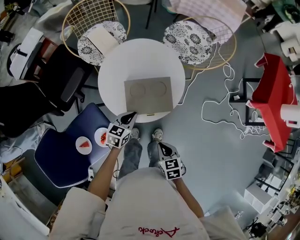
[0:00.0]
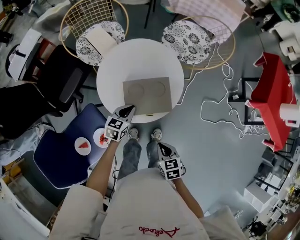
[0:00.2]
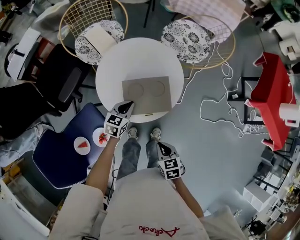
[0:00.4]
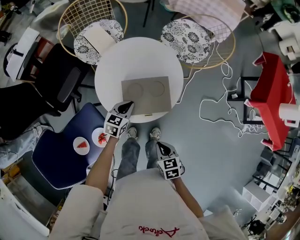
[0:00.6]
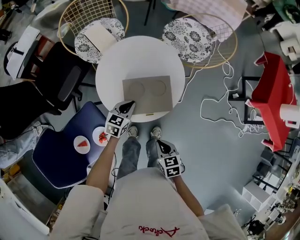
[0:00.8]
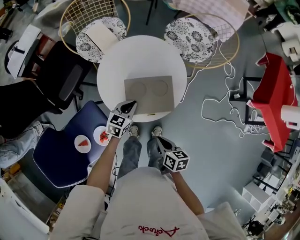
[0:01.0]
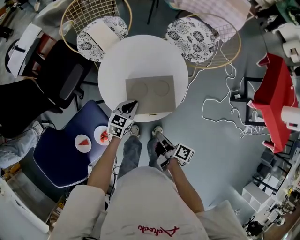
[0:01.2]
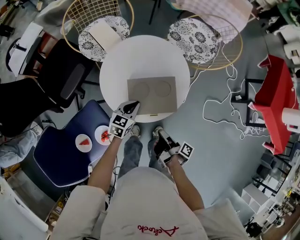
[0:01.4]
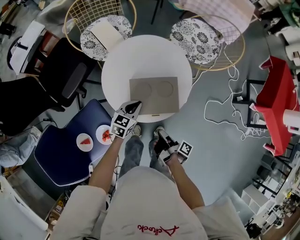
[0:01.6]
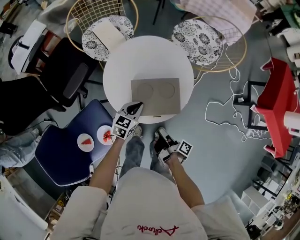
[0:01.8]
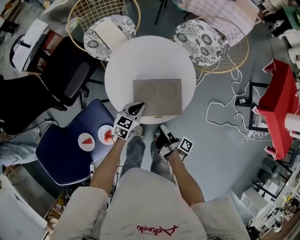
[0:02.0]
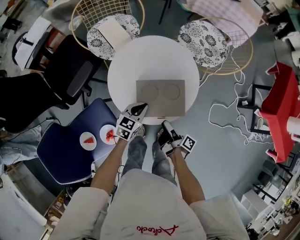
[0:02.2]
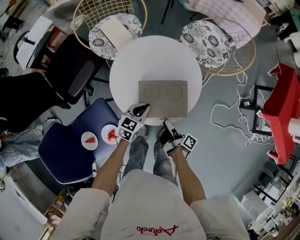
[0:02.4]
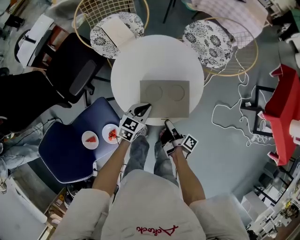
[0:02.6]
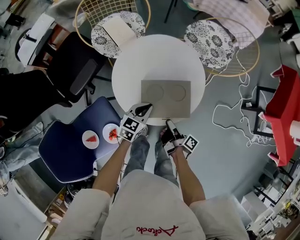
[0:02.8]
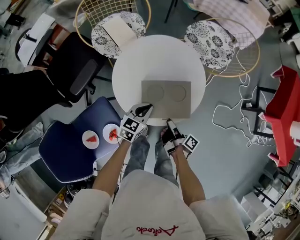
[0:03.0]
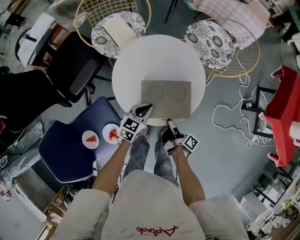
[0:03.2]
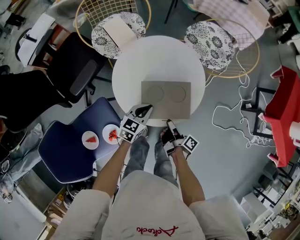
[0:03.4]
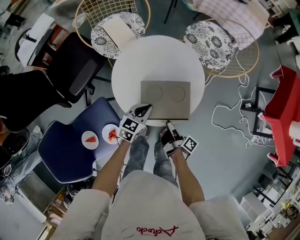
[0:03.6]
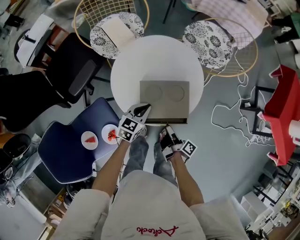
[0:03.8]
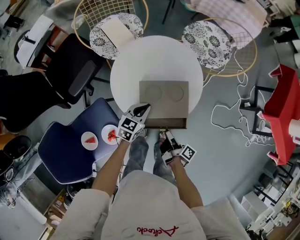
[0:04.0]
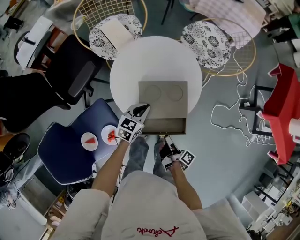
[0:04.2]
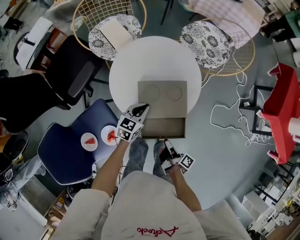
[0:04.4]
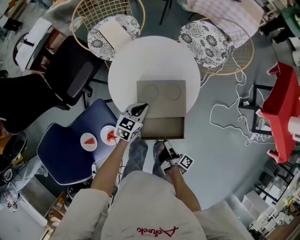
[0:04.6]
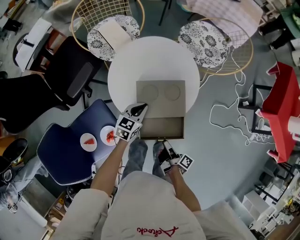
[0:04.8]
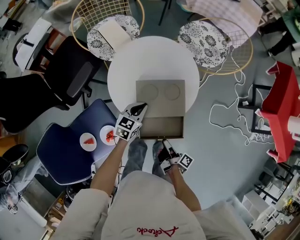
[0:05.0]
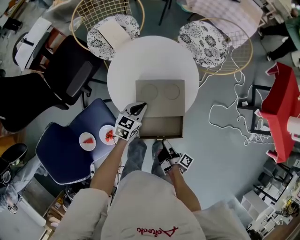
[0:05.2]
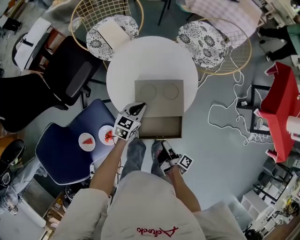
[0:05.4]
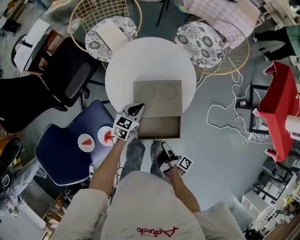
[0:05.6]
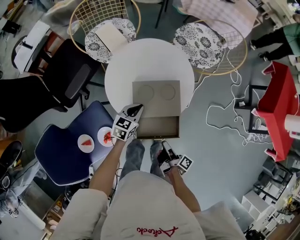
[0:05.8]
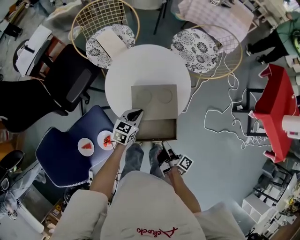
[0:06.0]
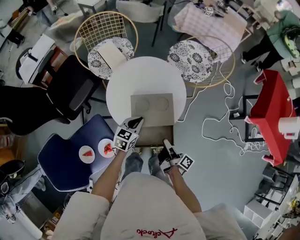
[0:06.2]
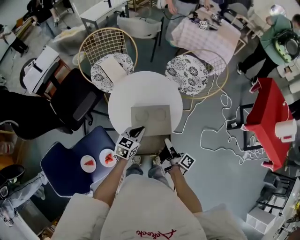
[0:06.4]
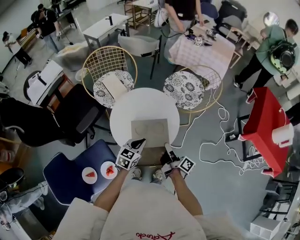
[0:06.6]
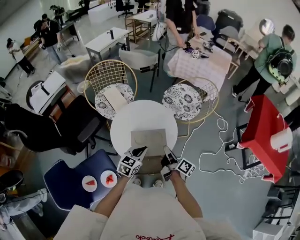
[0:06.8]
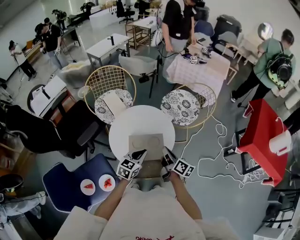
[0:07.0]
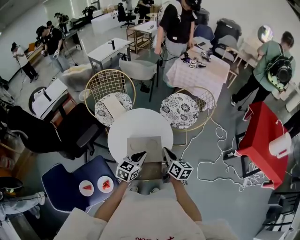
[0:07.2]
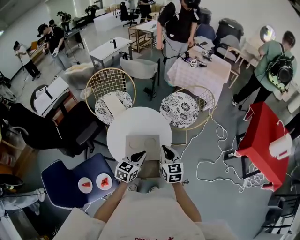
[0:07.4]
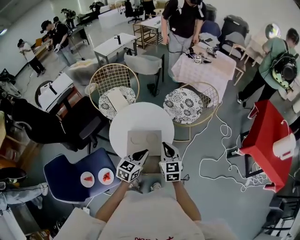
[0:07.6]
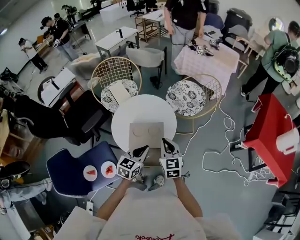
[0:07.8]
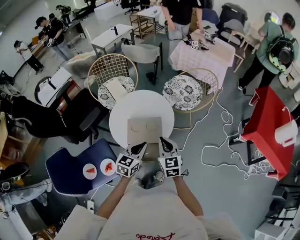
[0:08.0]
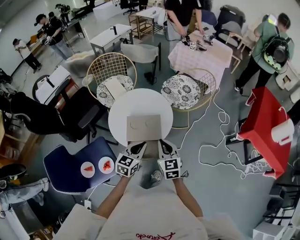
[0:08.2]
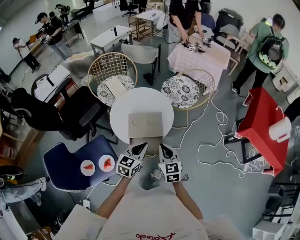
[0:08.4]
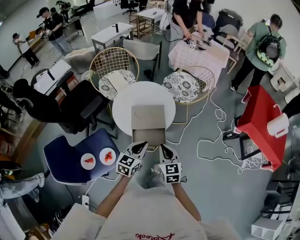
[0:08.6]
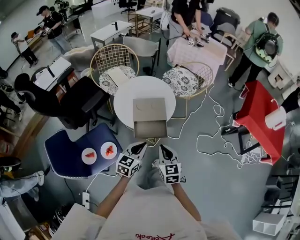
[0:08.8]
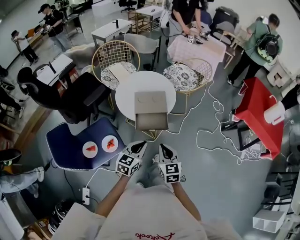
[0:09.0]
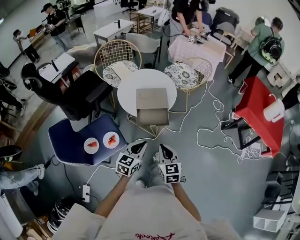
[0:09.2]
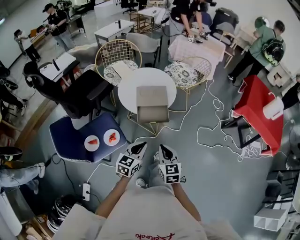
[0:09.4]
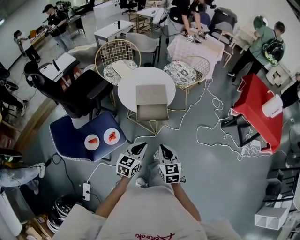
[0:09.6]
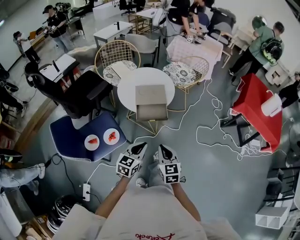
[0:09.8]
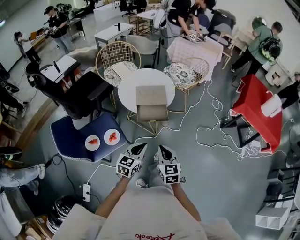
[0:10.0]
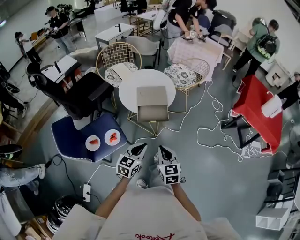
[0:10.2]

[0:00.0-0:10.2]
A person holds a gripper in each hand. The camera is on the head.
0:00.0 to 0:01.4: The grippers both shift forward by roughly 5 cm. The right gripper rolls clockwise, seen from behind, by about 90 degrees.
0:01.4 to 0:03.0: The right gripper shifts about 5 cm forward, and opens, then closes again.
0:03.0 to 0:04.4: The right gripper heads backward, covering about 10 cm.
0:04.4 to 0:05.8: The grippers move only a little.
0:05.8 to 0:07.2: The right gripper is displaced upward and forward by roughly 30 cm, and rolls counterclockwise, seen from behind, by some 60 degrees. Meanwhile the left gripper travels upward and to the right by some 20 cm.
0:07.2 to 0:08.8: Both grippers move backward, roughly 25 cm. The right gripper rotates approximately 40 degrees.
0:08.8 to 0:10.2: Both grippers move backward, approximately 15 cm.

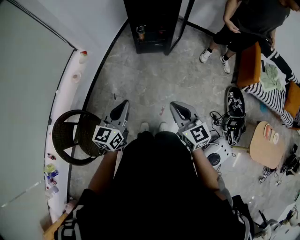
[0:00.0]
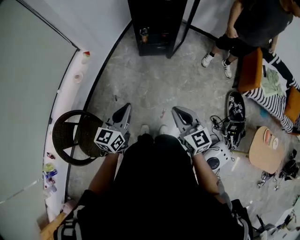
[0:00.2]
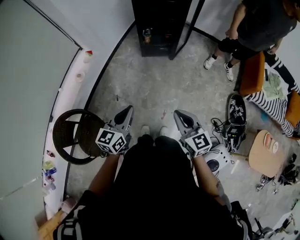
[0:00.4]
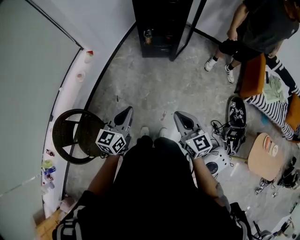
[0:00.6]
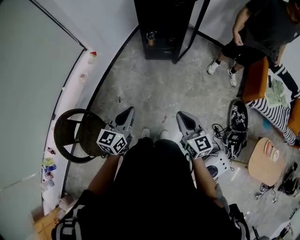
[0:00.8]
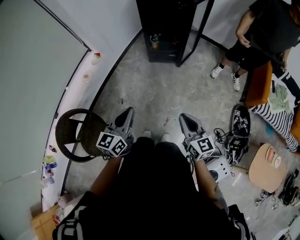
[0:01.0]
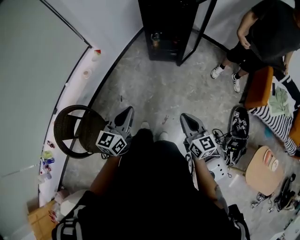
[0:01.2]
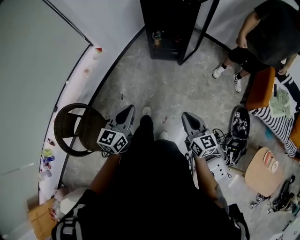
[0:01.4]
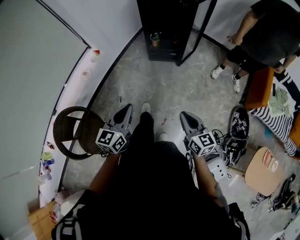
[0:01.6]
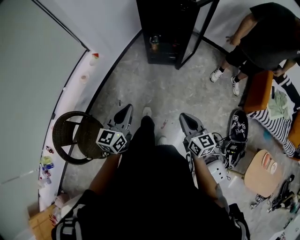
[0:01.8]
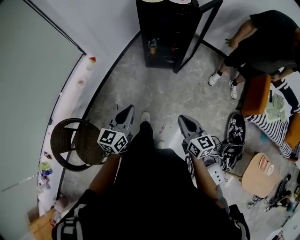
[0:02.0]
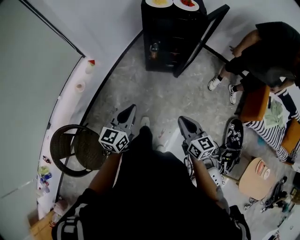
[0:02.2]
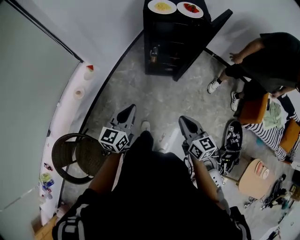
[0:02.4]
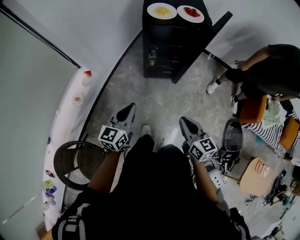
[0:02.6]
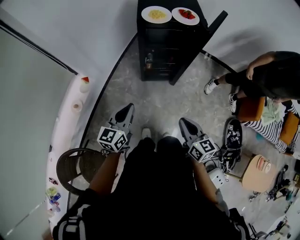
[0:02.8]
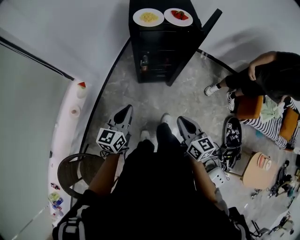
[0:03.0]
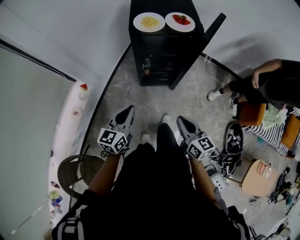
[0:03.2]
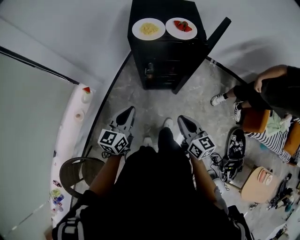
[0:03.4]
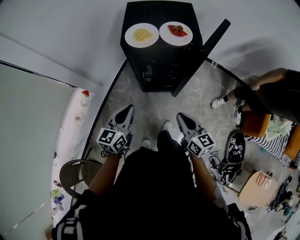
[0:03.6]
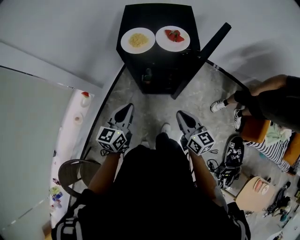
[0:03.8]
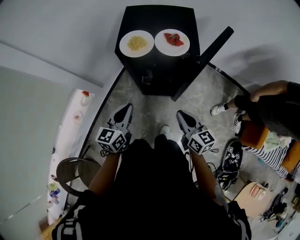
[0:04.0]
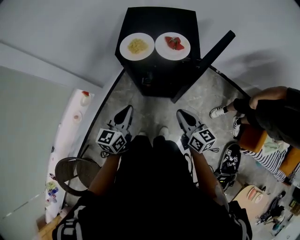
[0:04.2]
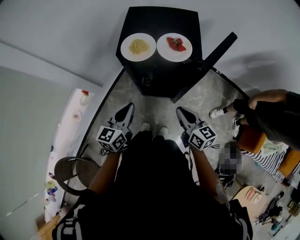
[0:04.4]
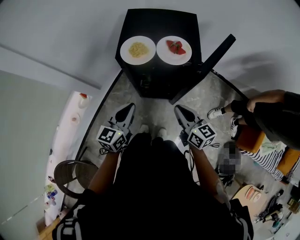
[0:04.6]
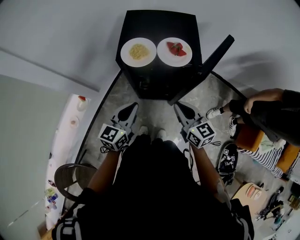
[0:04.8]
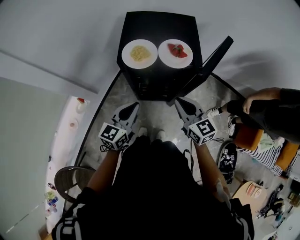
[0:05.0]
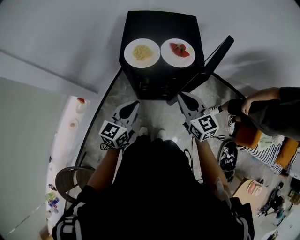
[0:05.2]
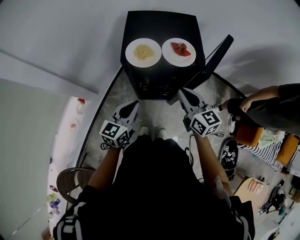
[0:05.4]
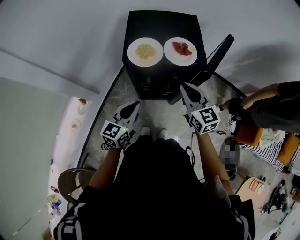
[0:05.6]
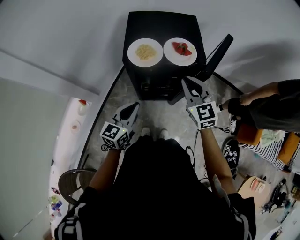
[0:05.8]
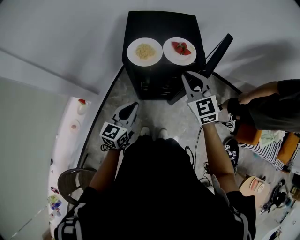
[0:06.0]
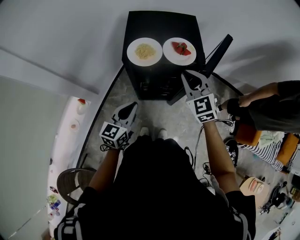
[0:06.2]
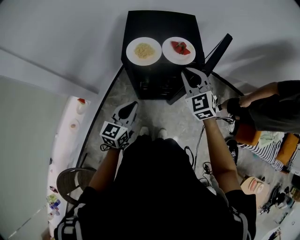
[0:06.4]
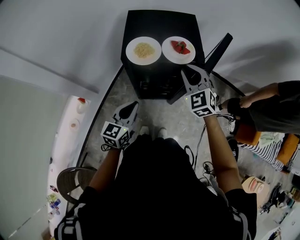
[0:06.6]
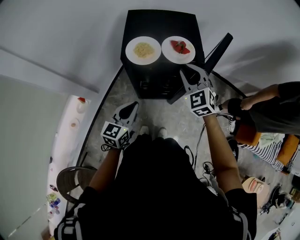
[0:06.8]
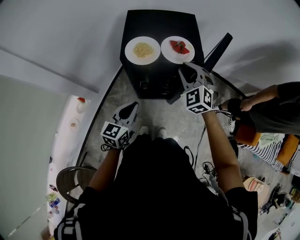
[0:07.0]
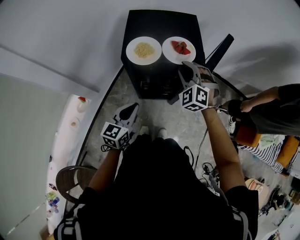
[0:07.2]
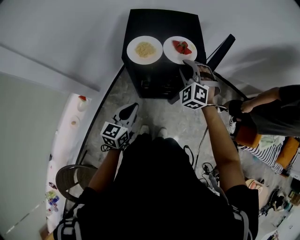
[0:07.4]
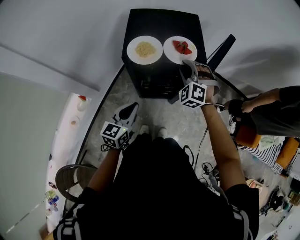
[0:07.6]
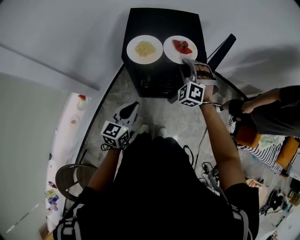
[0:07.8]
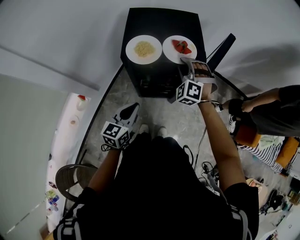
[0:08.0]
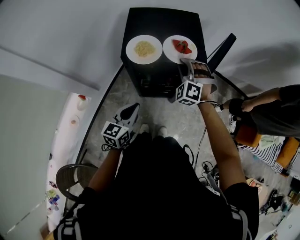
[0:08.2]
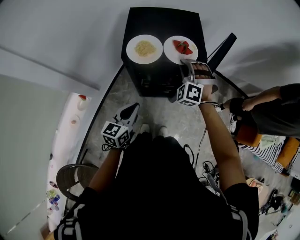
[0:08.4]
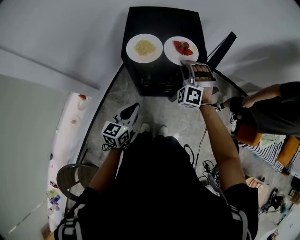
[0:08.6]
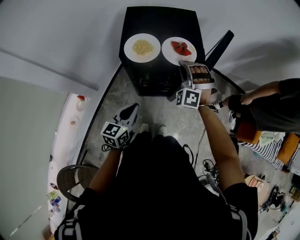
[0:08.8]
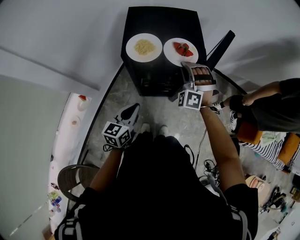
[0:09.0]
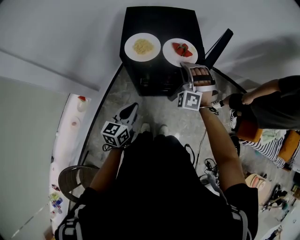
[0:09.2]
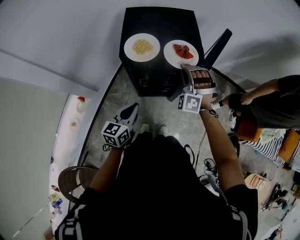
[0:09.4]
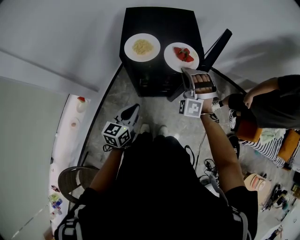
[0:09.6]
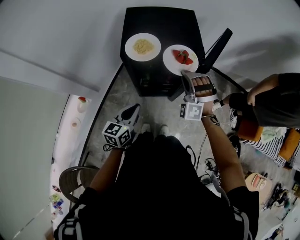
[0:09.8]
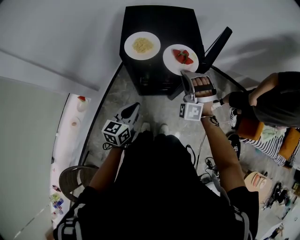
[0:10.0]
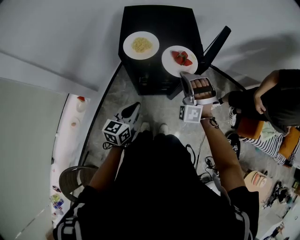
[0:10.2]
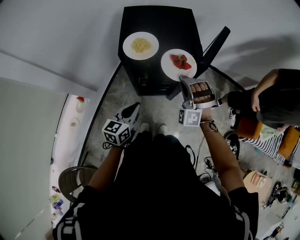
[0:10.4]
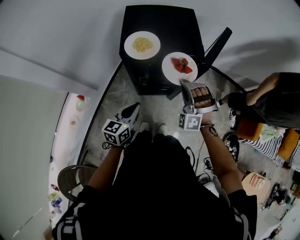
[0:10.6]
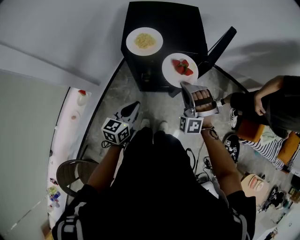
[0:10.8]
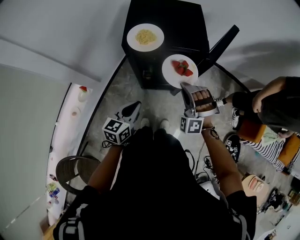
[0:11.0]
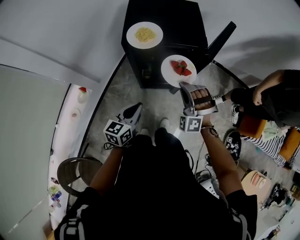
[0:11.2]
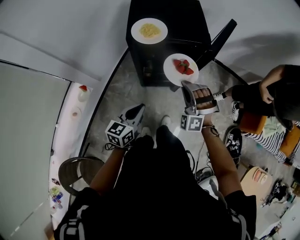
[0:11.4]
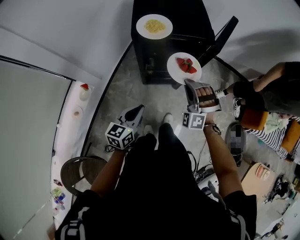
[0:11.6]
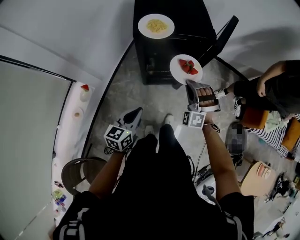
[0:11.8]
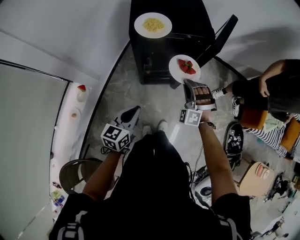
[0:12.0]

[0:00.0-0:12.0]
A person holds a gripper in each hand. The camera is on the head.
0:00.0 to 0:01.6: The right gripper is displaced to the right and downward by some 10 cm, while the left gripper changes place by some 5 cm.
0:01.6 to 0:03.0: Both grippers move forward, approximately 30 cm.
0:03.0 to 0:04.4: The two grippers go roughly 25 cm forward and to the right.
0:04.4 to 0:06.0: The right gripper heads forward, upward and to the left, covering some 15 cm, and twists roughly 50 degrees counterclockwise, seen from behind.
0:06.0 to 0:07.6: The right gripper goes approximately 10 cm downward and forward, twists approximately 40 degrees counterclockwise, seen from behind, and opens.
0:07.6 to 0:09.0: The right gripper closes its fingers.
0:09.0 to 0:10.4: The right gripper heads backward, covering approximately 10 cm.
0:10.4 to 0:12.0: The left gripper goes roughly 10 cm backward. The right gripper moves downward and backward, some 10 cm.

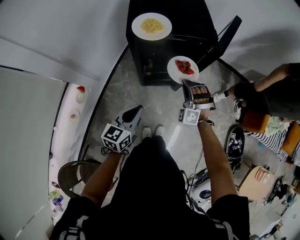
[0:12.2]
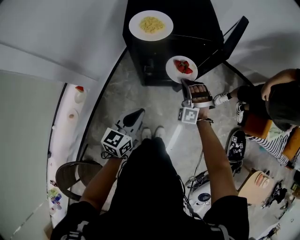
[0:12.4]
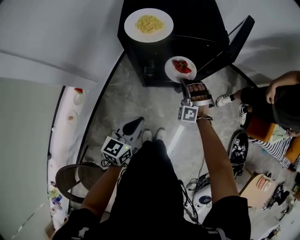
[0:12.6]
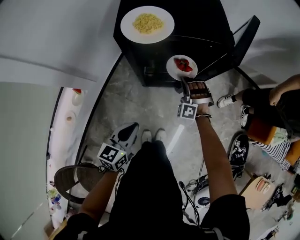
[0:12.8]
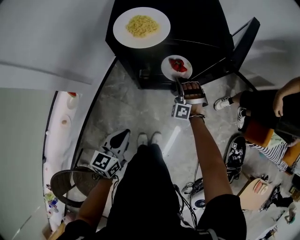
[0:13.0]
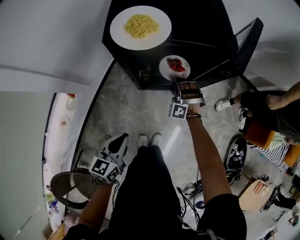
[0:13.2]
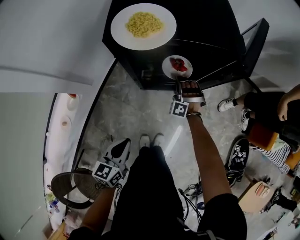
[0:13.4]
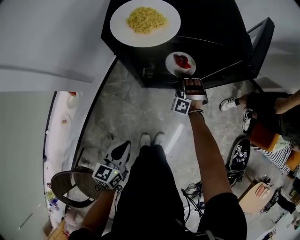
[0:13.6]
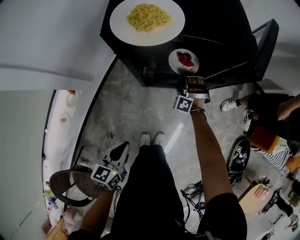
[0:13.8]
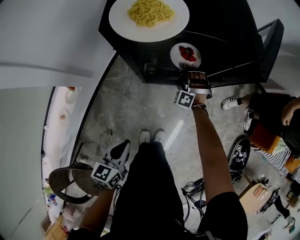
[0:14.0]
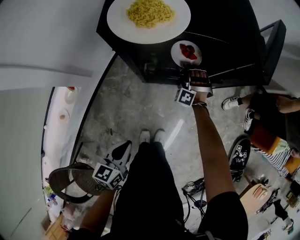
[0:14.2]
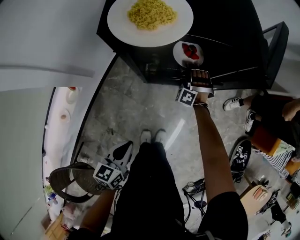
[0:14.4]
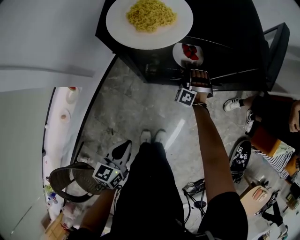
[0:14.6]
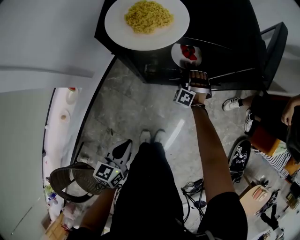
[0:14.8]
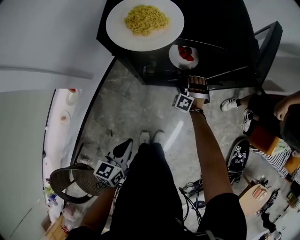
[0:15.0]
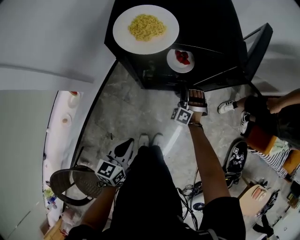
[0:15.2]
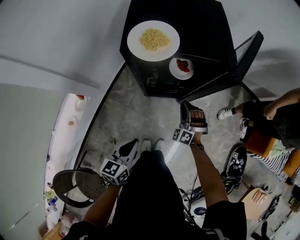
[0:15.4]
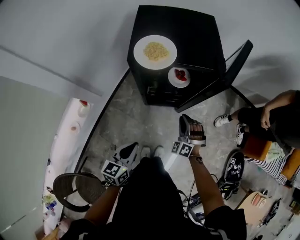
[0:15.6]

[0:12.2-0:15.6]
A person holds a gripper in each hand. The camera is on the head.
0:12.2 to 0:13.8: The right gripper travels downward and forward by roughly 30 cm; the left gripper moves downward, some 15 cm.
0:13.8 to 0:15.6: The right gripper heads backward and upward, covering some 25 cm, while the left gripper goes about 10 cm upward.
